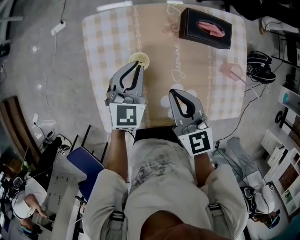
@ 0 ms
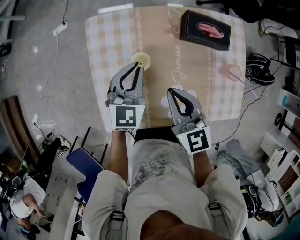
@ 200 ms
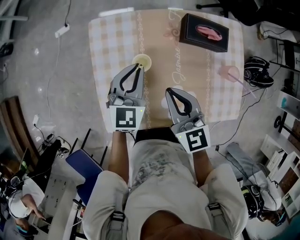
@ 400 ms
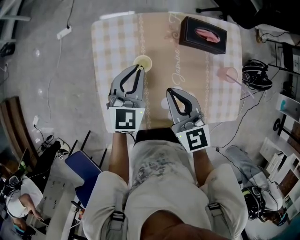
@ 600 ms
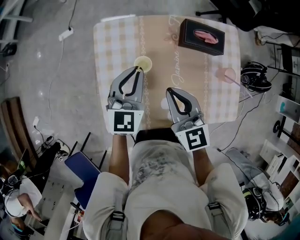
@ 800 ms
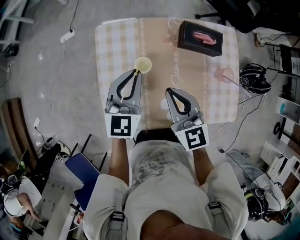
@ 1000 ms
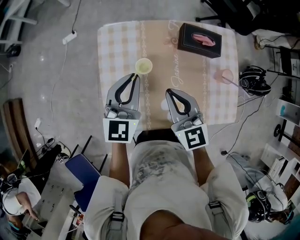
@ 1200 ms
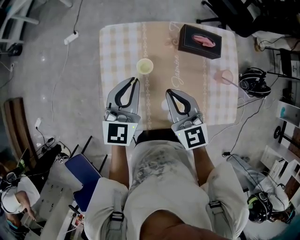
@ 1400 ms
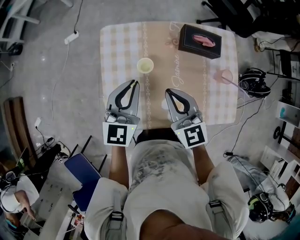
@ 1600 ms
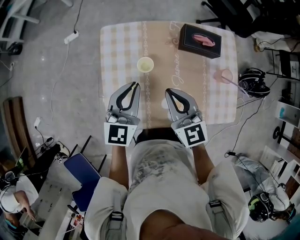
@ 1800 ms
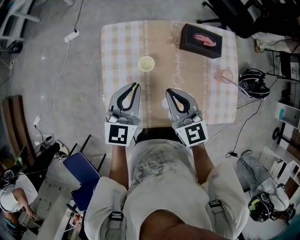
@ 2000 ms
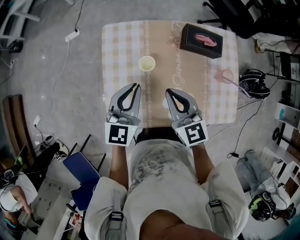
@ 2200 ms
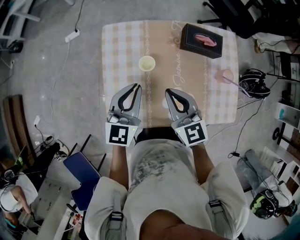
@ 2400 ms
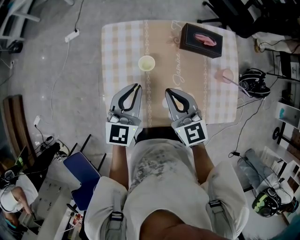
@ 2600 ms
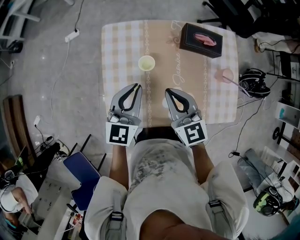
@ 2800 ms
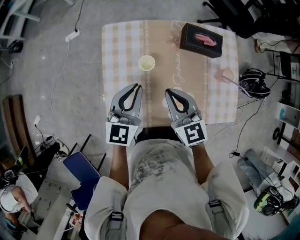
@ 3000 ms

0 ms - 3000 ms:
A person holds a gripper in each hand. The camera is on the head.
0 ms - 1600 ms: The right gripper moves upward, about 5 cm, while the left gripper travels upward and backward by about 15 cm.
1600 ms - 3000 ms: The grippers stay close to where they were, moving slightly.

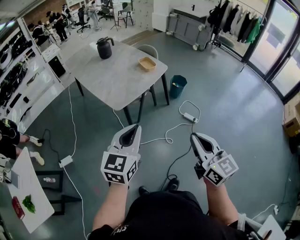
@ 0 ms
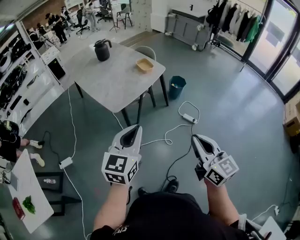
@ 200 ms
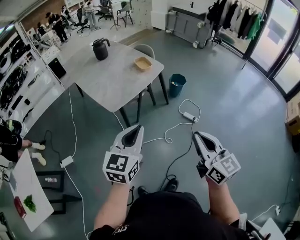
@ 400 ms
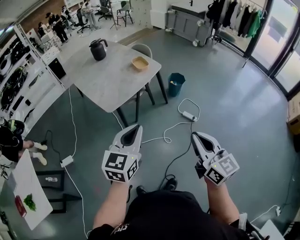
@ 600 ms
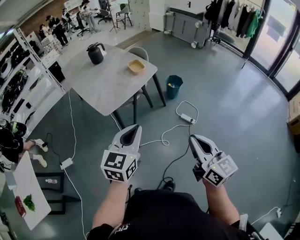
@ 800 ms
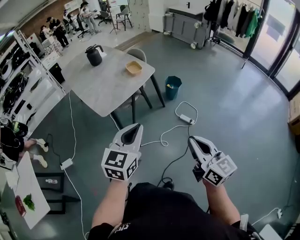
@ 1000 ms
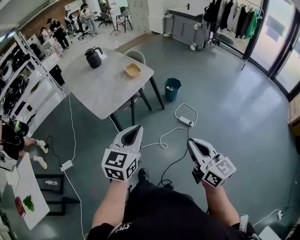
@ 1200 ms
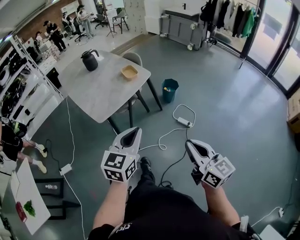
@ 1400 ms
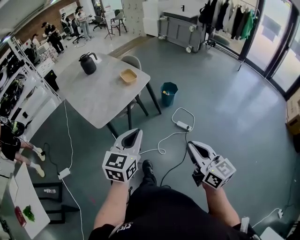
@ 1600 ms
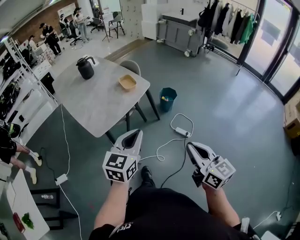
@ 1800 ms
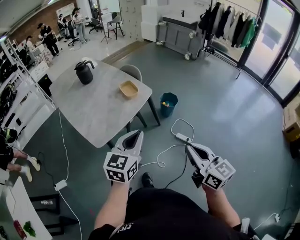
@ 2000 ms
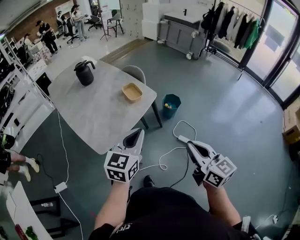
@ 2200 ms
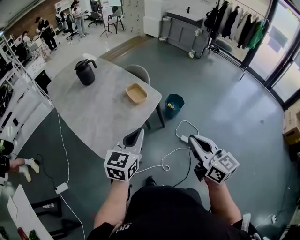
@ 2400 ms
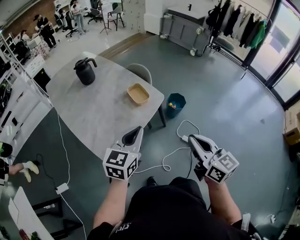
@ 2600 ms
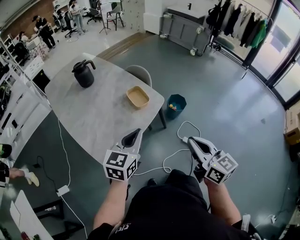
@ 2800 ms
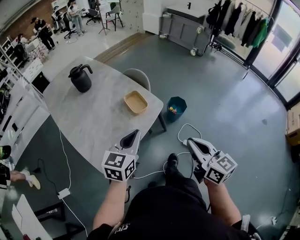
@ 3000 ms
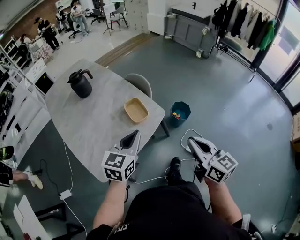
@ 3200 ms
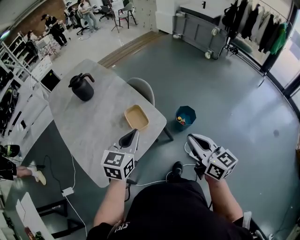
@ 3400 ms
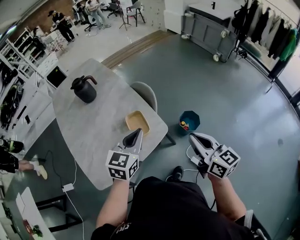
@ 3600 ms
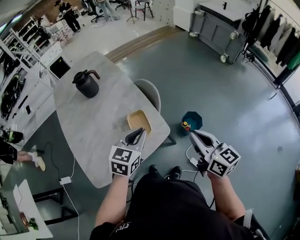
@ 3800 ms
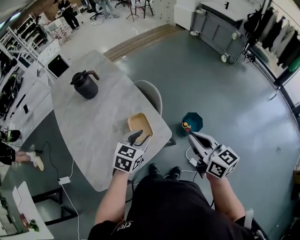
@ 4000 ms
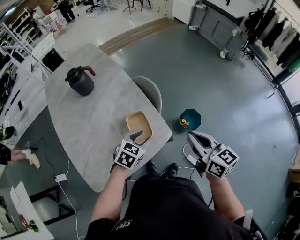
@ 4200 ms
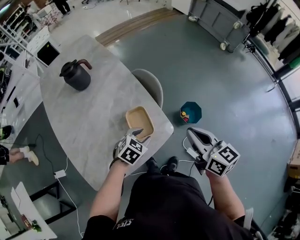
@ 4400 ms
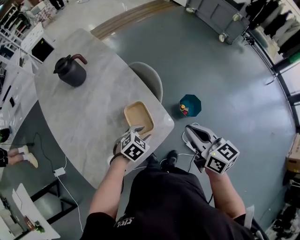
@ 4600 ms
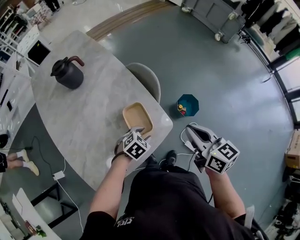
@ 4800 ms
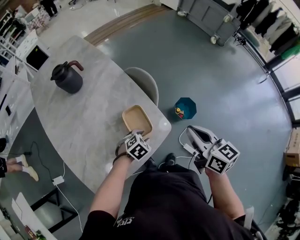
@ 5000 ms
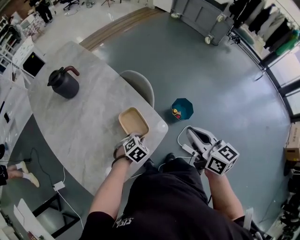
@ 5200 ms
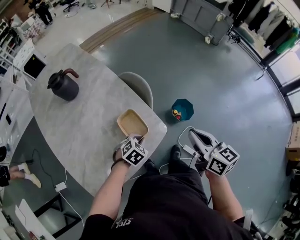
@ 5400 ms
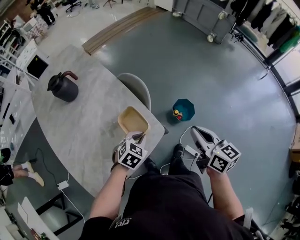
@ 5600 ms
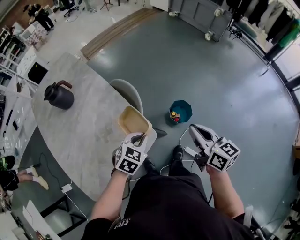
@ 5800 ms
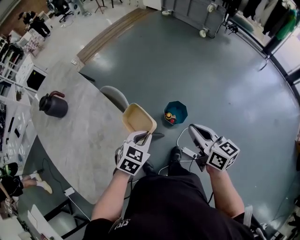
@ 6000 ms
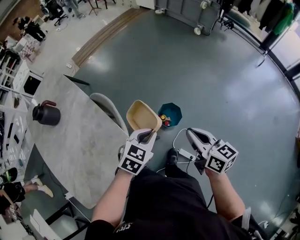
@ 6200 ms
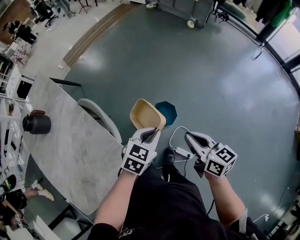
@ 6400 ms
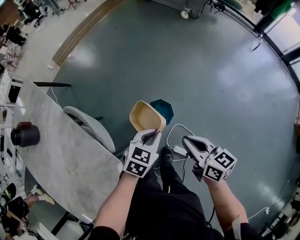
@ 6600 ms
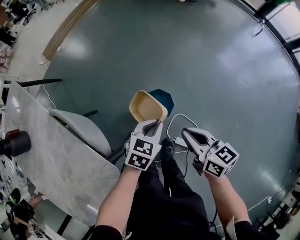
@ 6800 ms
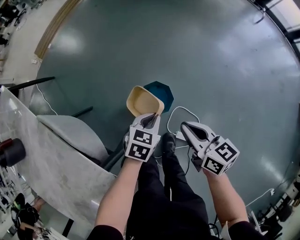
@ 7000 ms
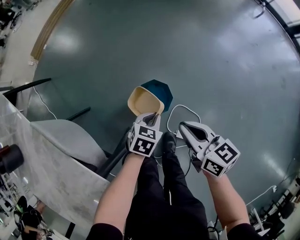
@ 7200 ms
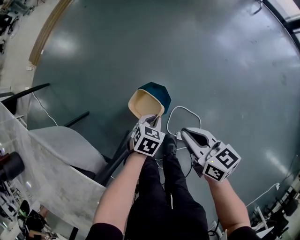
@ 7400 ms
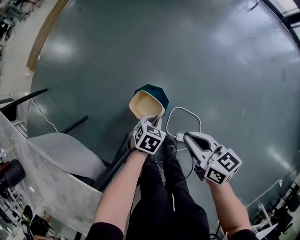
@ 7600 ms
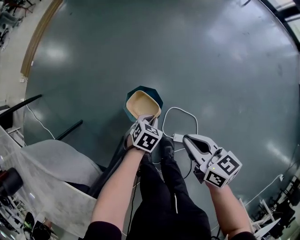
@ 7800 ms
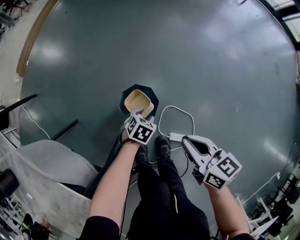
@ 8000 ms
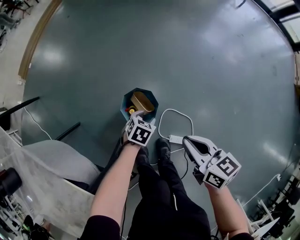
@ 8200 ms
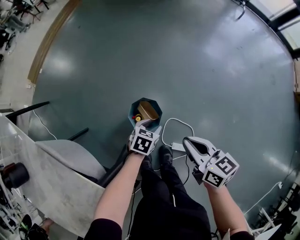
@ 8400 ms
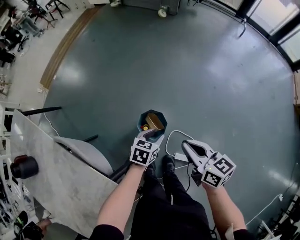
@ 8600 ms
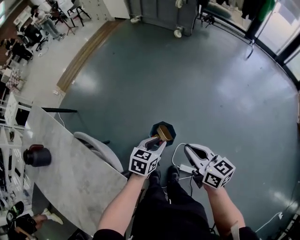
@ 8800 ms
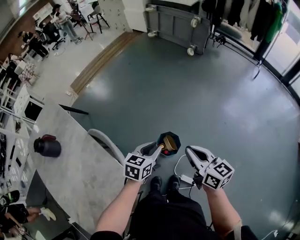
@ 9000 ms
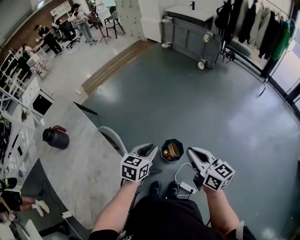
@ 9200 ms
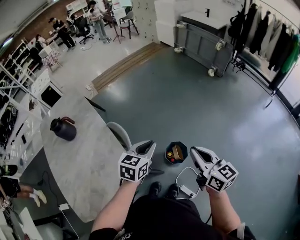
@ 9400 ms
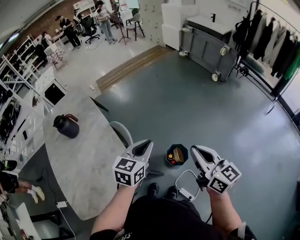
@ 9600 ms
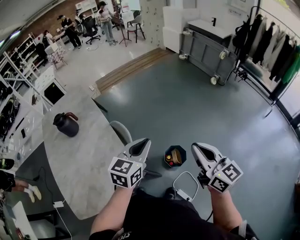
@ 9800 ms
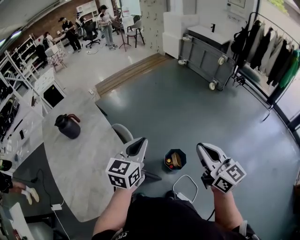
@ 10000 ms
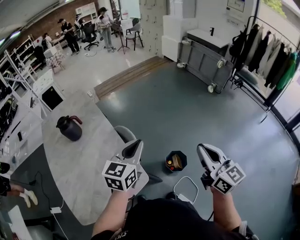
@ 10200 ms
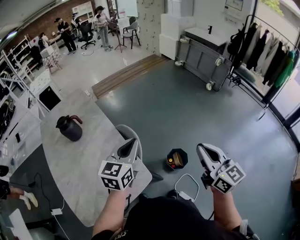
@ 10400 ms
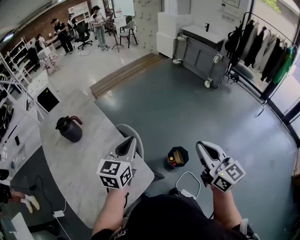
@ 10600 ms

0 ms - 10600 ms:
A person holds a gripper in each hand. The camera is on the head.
0 ms - 1600 ms: The left gripper travels to the right and forward by about 20 cm. Meanwhile the right gripper moves to the right, roughly 15 cm.
1600 ms - 3000 ms: Both grippers move forward, roughly 35 cm.
3000 ms - 4600 ms: The left gripper moves downward and forward, about 35 cm, angles its fingers downward, by approximately 40 degrees, and opens up. The right gripper travels forward by approximately 30 cm.
4600 ms - 6000 ms: The left gripper goes about 20 cm to the right, upward and forward, and closes up; the right gripper moves to the right, about 20 cm.
6000 ms - 7600 ms: The left gripper travels downward, to the right and forward by some 50 cm, and rotates about 30 degrees, while the right gripper moves downward, roughly 30 cm, and rotates roughly 20 degrees.
7600 ms - 9000 ms: Both grippers travel together upward, some 35 cm. The left gripper changes its angle by approximately 40 degrees, and opens, then closes once more. The right gripper changes its angle by about 20 degrees.
9000 ms - 10600 ms: The right gripper shifts about 25 cm upward and to the left, and rotates roughly 20 degrees. The left gripper shifts roughly 35 cm to the left and upward, rotates roughly 40 degrees, and closes its fingers.

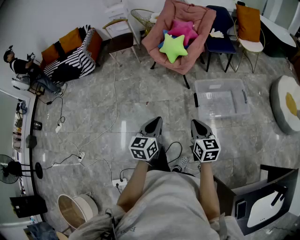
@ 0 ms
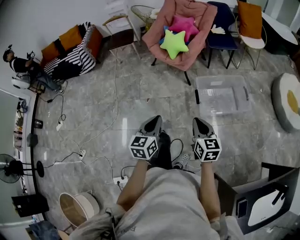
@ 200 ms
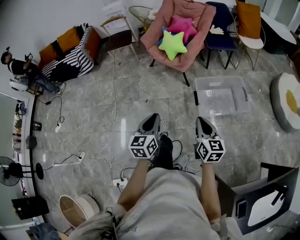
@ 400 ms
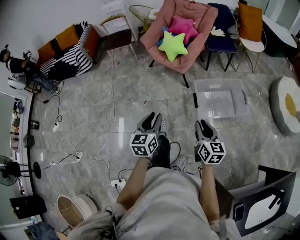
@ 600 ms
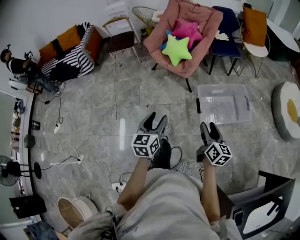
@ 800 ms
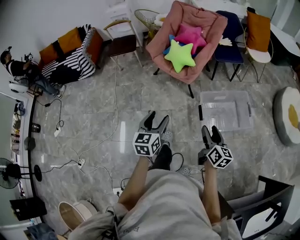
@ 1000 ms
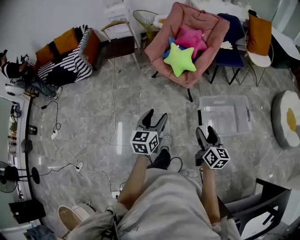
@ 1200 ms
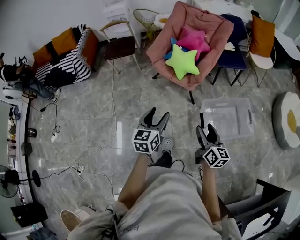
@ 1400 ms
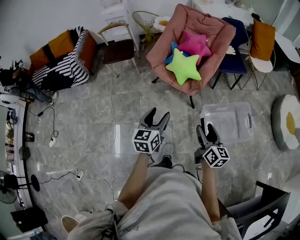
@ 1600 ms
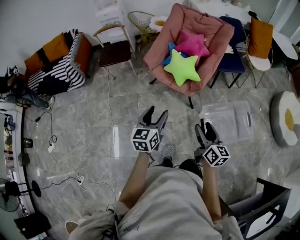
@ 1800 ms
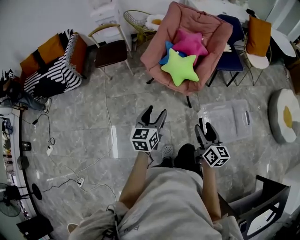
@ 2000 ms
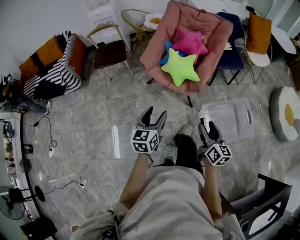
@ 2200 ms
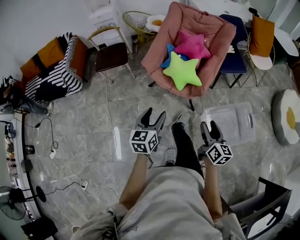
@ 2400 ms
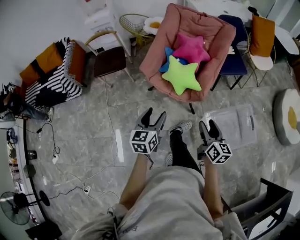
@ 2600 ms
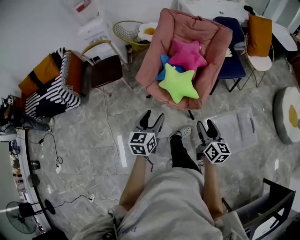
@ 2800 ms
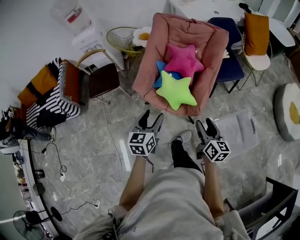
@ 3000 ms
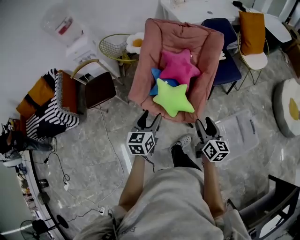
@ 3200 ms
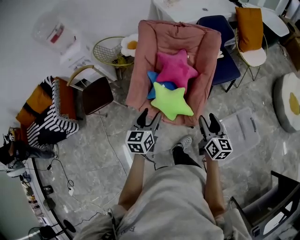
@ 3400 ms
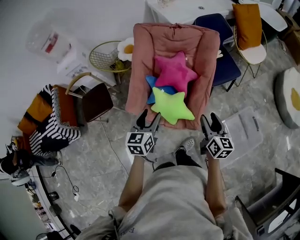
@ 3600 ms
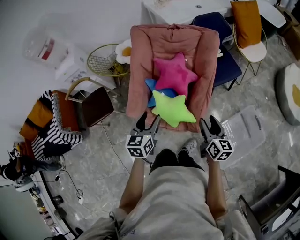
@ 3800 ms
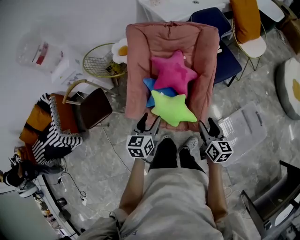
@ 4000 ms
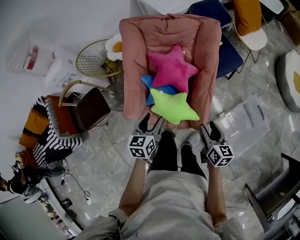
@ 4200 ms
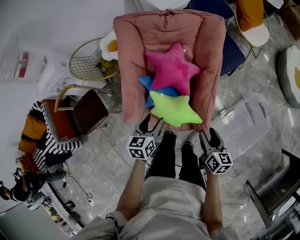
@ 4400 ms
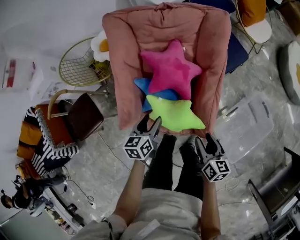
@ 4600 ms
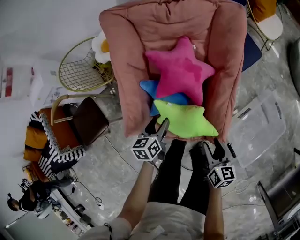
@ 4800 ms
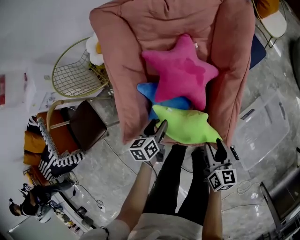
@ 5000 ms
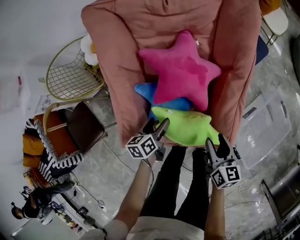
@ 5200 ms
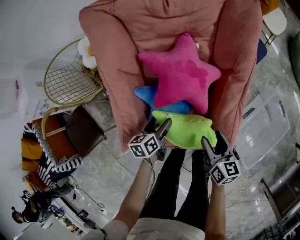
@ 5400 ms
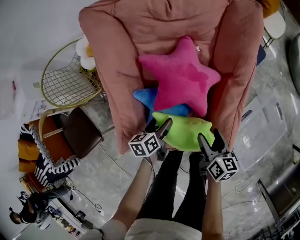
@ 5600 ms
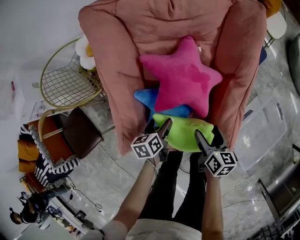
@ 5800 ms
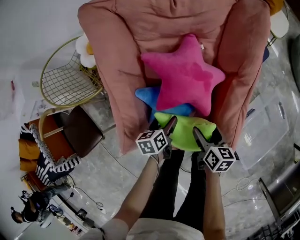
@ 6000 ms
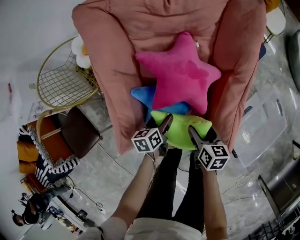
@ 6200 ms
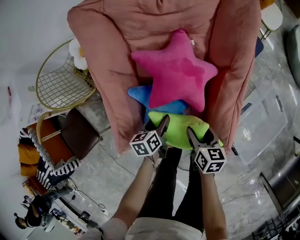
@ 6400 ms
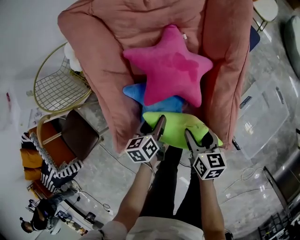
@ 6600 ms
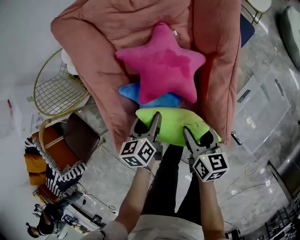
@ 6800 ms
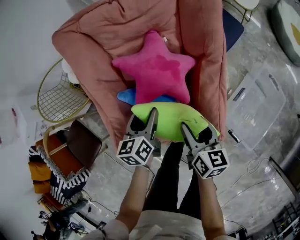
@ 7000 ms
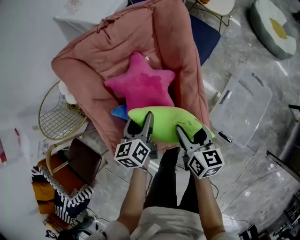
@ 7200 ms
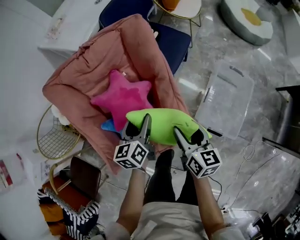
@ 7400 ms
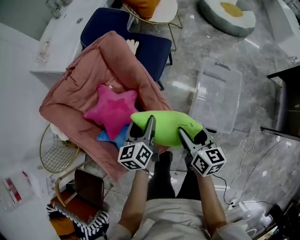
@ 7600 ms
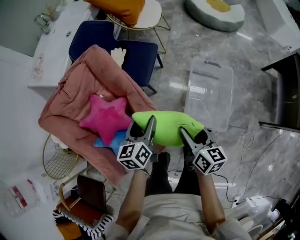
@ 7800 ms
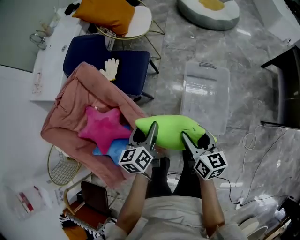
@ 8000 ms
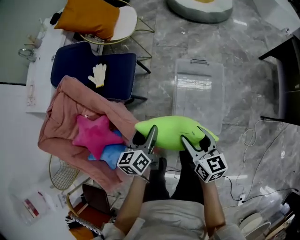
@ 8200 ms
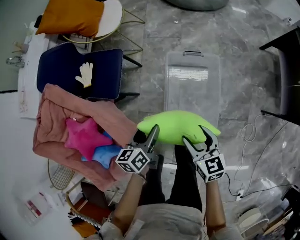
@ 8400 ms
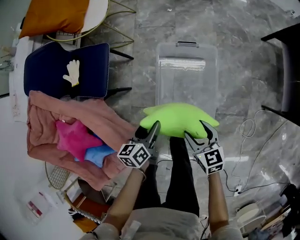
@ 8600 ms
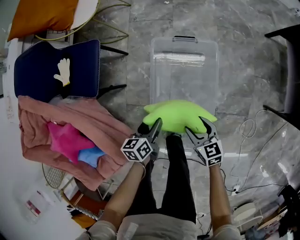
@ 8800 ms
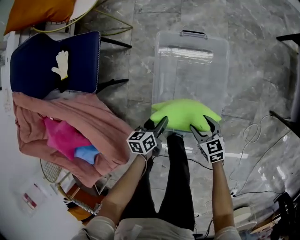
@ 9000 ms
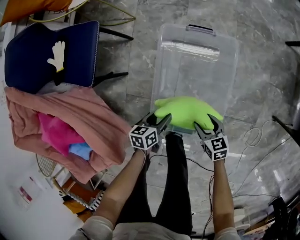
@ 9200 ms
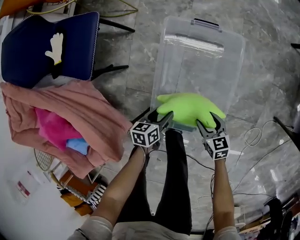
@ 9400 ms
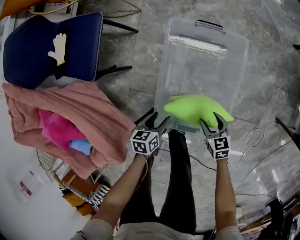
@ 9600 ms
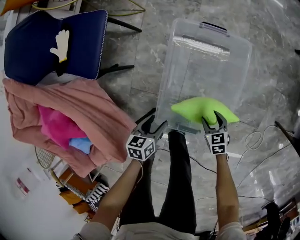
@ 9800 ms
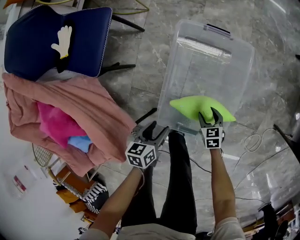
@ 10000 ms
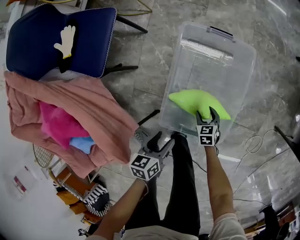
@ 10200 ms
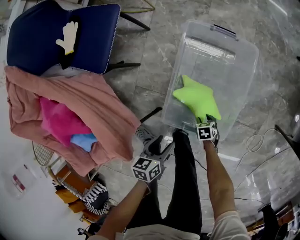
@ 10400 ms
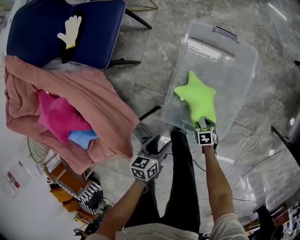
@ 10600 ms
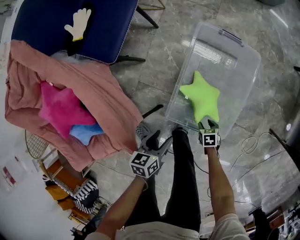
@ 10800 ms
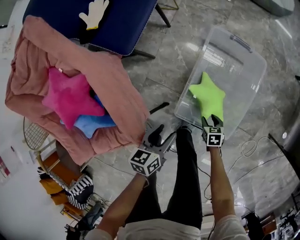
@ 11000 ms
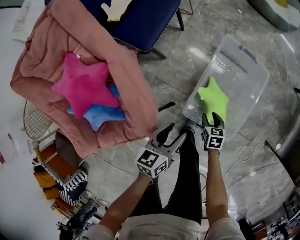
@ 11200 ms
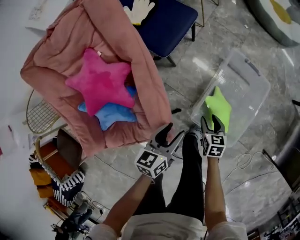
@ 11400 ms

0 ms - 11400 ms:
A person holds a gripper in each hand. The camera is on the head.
0 ms - 1400 ms: The two grippers go about 25 cm forward. The right gripper changes its angle by approximately 20 degrees, and opens up. The left gripper opens.
1400 ms - 2800 ms: The two grippers go about 25 cm forward.
2800 ms - 4200 ms: Both grippers travel together forward, approximately 25 cm. The left gripper rotates about 20 degrees.
4200 ms - 5600 ms: The left gripper is displaced downward and forward by roughly 30 cm, and rotates roughly 30 degrees. The right gripper moves downward, forward and to the left, some 25 cm.
5600 ms - 7200 ms: The left gripper goes approximately 20 cm upward and to the right, and turns by approximately 20 degrees. Meanwhile the right gripper shifts some 10 cm upward.
7200 ms - 8600 ms: Both grippers are carried roughly 60 cm. The left gripper rotates some 40 degrees.
8600 ms - 10000 ms: The left gripper heads downward, covering about 20 cm; the right gripper shifts roughly 35 cm downward, and turns by some 20 degrees.
10000 ms - 11400 ms: The left gripper moves upward, some 20 cm, and changes its angle by some 30 degrees, while the right gripper changes place by about 30 cm.
